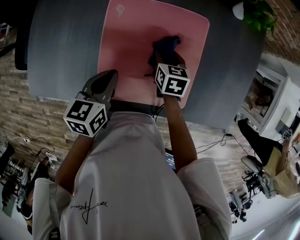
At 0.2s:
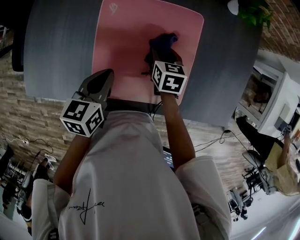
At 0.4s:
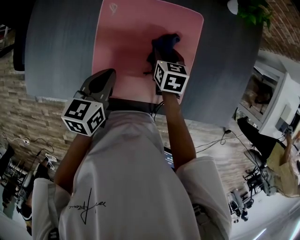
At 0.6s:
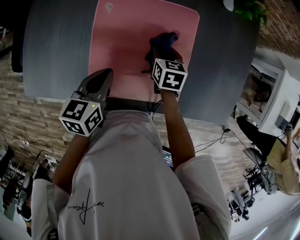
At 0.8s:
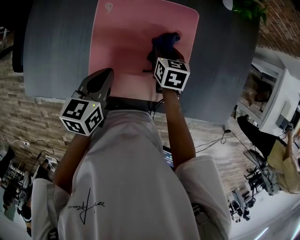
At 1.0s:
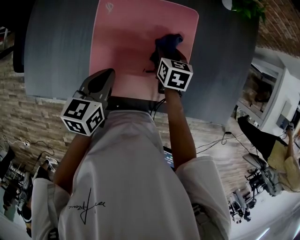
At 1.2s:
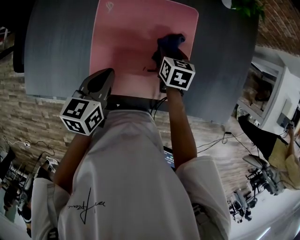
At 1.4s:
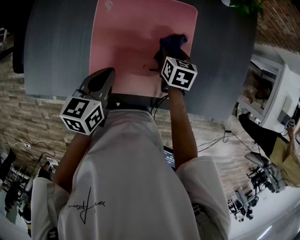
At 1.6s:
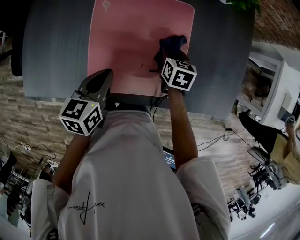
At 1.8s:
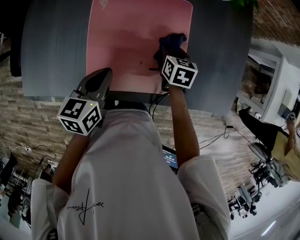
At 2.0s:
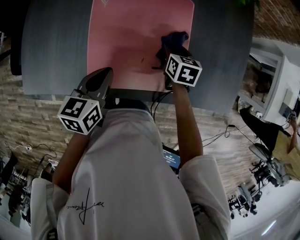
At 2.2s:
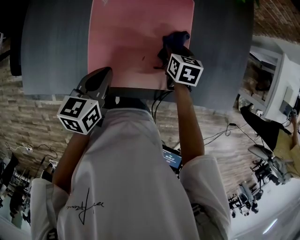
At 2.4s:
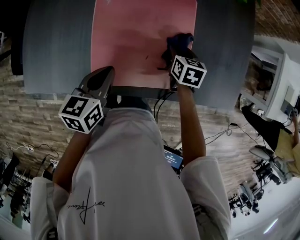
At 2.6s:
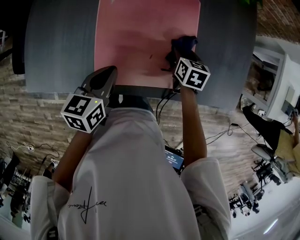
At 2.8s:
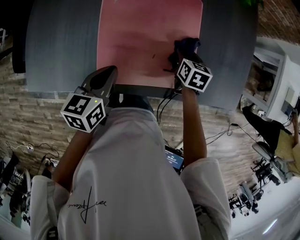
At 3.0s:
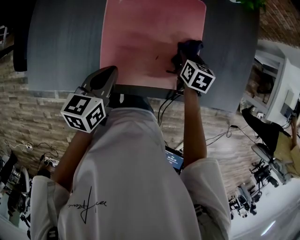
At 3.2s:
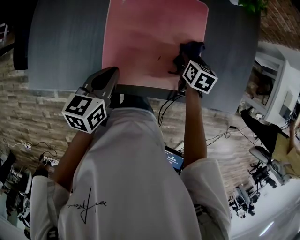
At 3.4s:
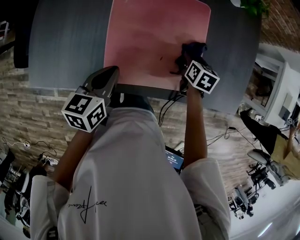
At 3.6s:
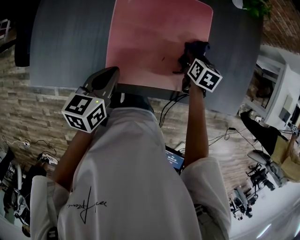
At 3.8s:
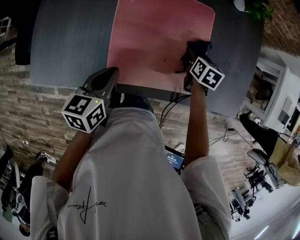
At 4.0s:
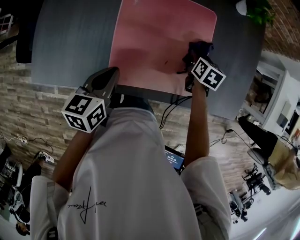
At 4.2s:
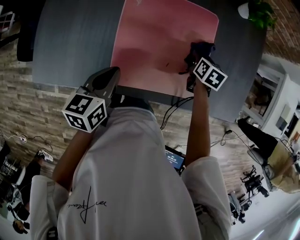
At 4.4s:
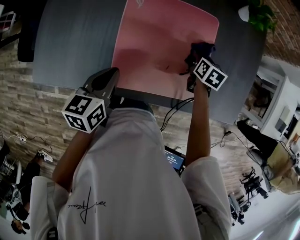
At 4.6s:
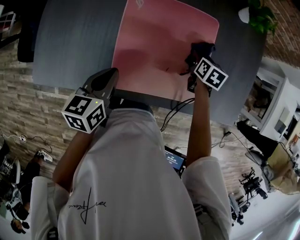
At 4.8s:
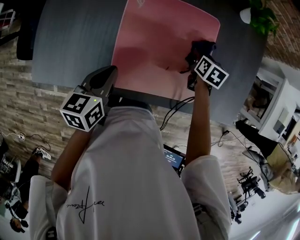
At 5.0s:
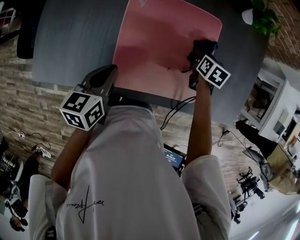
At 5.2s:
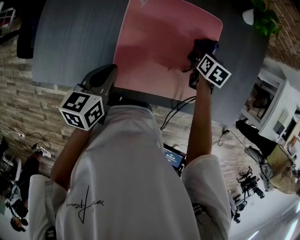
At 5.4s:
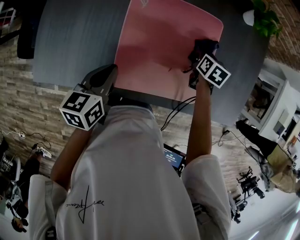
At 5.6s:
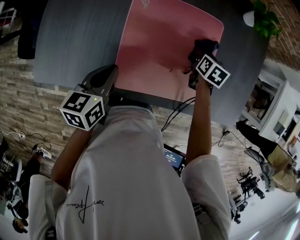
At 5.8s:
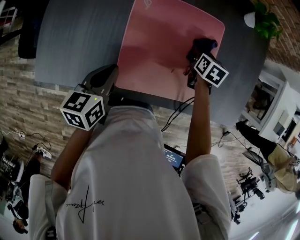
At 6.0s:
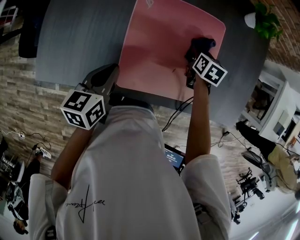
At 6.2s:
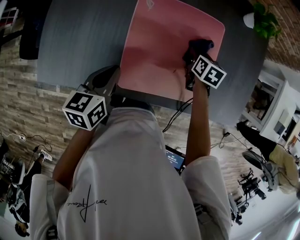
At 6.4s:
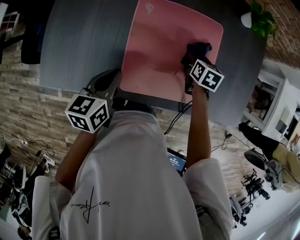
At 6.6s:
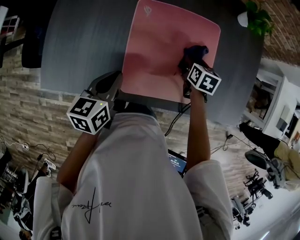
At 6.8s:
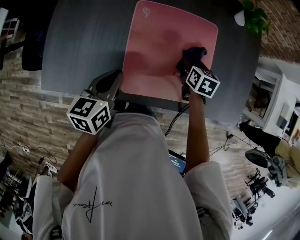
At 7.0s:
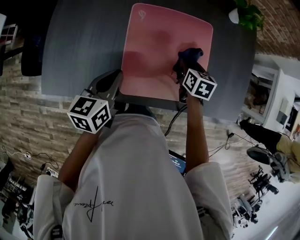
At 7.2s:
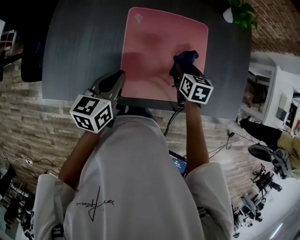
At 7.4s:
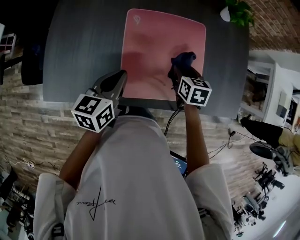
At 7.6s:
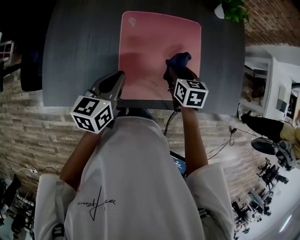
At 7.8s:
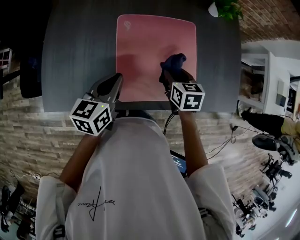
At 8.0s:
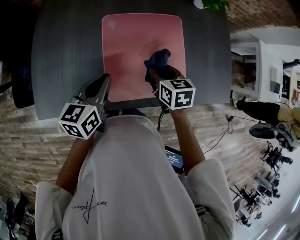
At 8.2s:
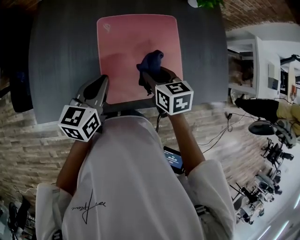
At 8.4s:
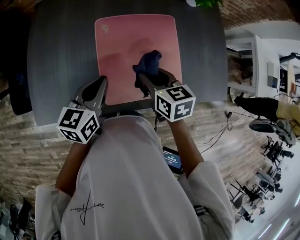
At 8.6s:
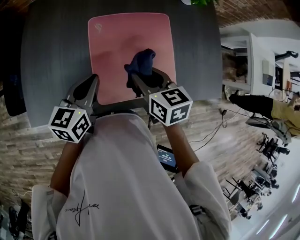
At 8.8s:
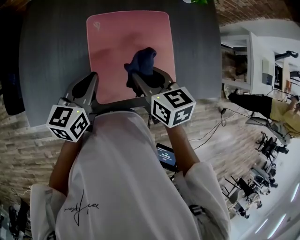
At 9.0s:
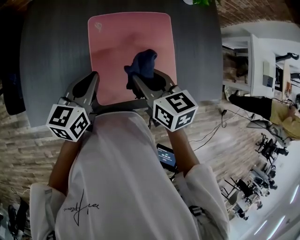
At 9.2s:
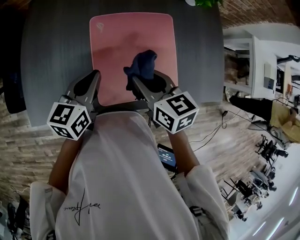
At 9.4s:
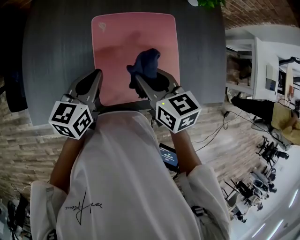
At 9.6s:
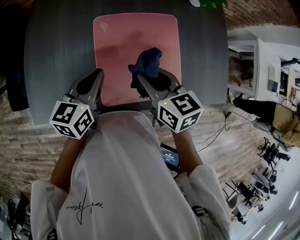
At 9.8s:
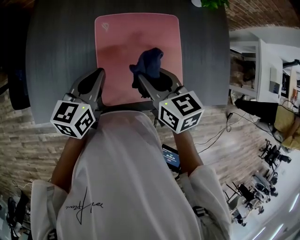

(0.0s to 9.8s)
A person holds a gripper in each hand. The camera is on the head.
0.0s - 1.4s: The right gripper goes roughly 5 cm to the right.
1.4s - 2.8s: The right gripper ends up roughly 5 cm from where it was.
2.8s - 4.2s: The left gripper goes some 5 cm to the left.
4.2s - 5.6s: There are only small adjustments of the grippers.
5.6s - 7.0s: The right gripper shifts some 10 cm backward and to the left.
7.0s - 8.4s: The right gripper goes roughly 15 cm upward, backward and to the left; the left gripper ends up about 5 cm from where it was.
8.4s - 9.8s: There are only small adjustments of the grippers.

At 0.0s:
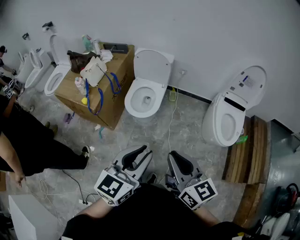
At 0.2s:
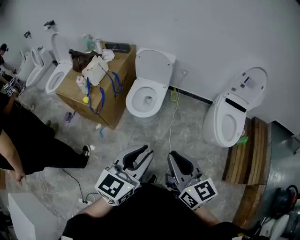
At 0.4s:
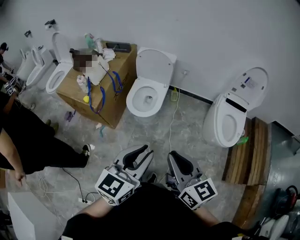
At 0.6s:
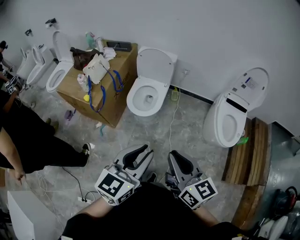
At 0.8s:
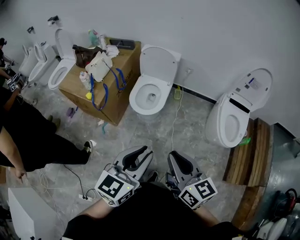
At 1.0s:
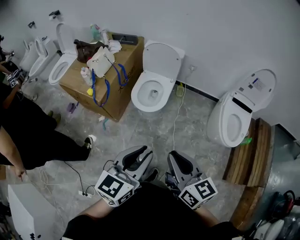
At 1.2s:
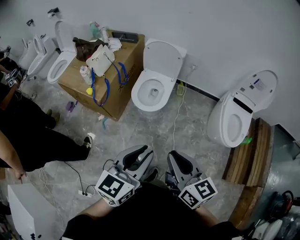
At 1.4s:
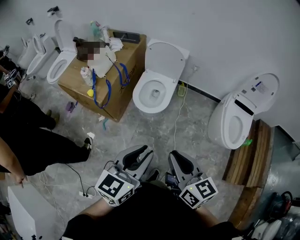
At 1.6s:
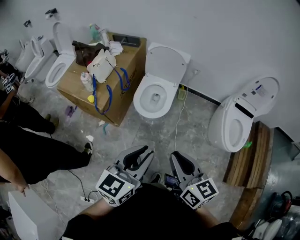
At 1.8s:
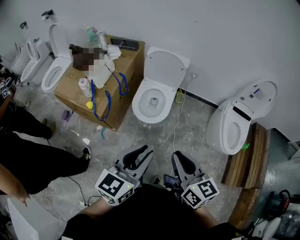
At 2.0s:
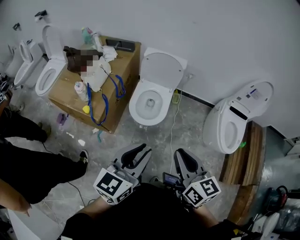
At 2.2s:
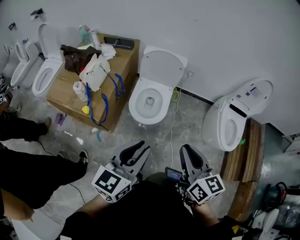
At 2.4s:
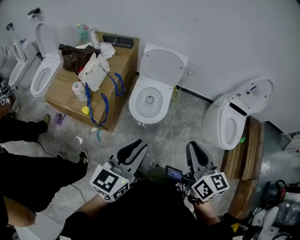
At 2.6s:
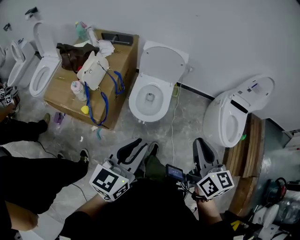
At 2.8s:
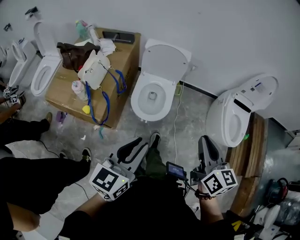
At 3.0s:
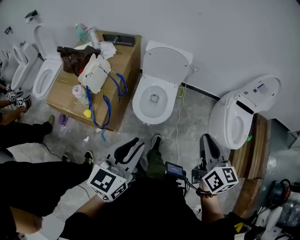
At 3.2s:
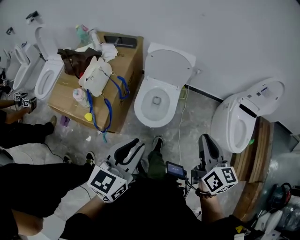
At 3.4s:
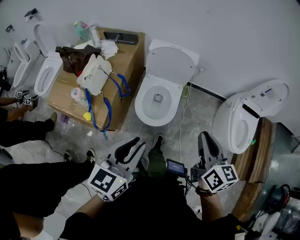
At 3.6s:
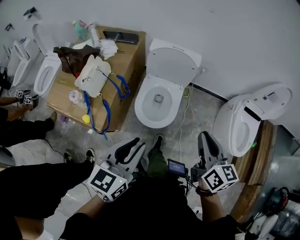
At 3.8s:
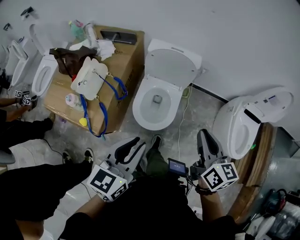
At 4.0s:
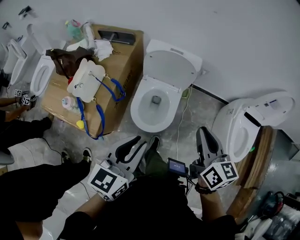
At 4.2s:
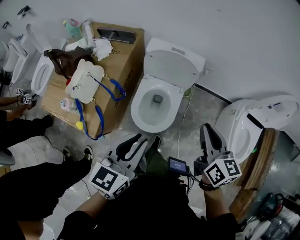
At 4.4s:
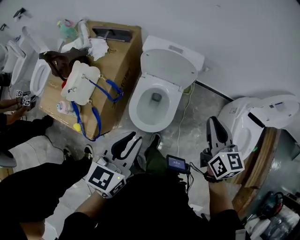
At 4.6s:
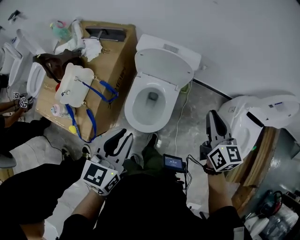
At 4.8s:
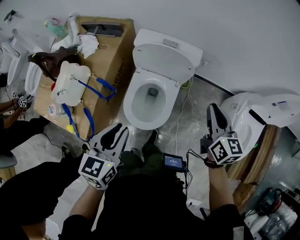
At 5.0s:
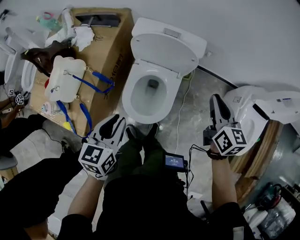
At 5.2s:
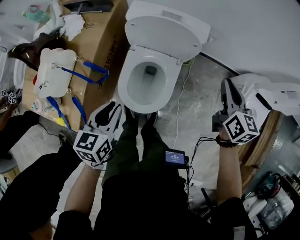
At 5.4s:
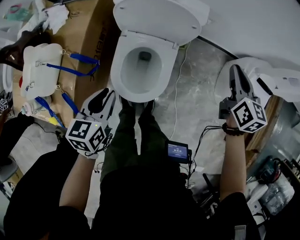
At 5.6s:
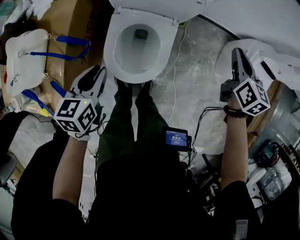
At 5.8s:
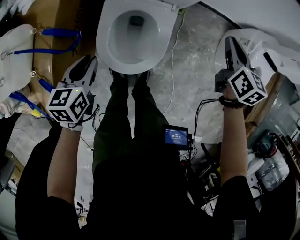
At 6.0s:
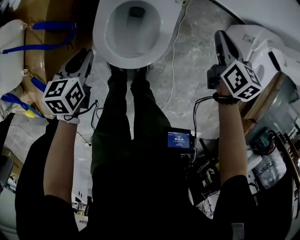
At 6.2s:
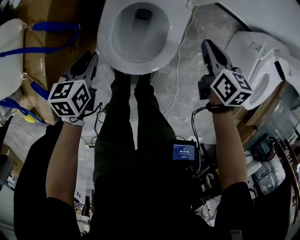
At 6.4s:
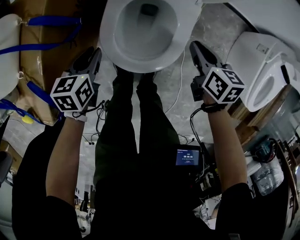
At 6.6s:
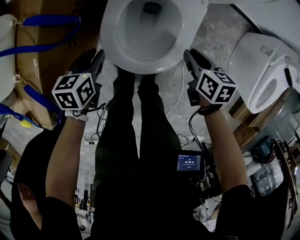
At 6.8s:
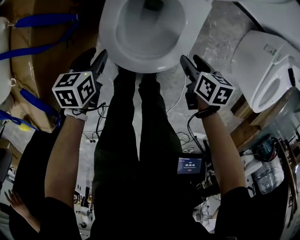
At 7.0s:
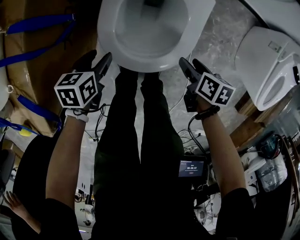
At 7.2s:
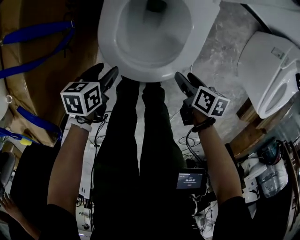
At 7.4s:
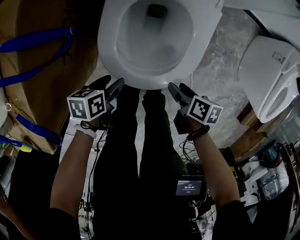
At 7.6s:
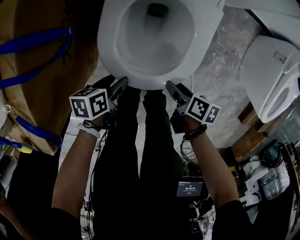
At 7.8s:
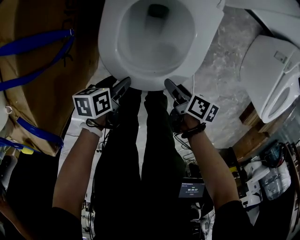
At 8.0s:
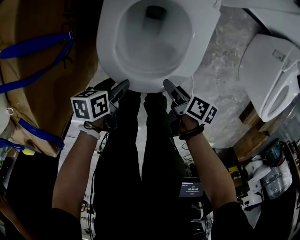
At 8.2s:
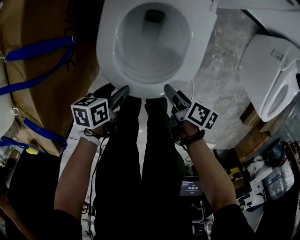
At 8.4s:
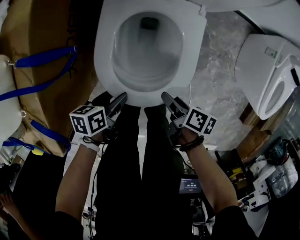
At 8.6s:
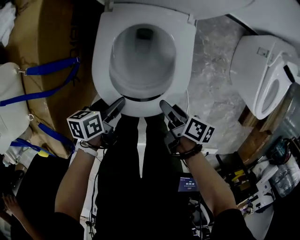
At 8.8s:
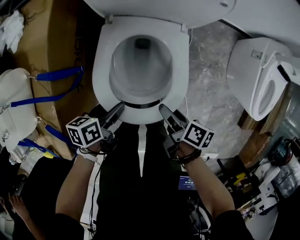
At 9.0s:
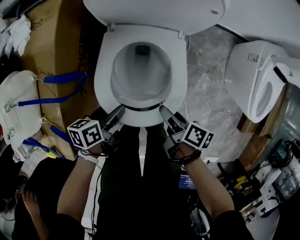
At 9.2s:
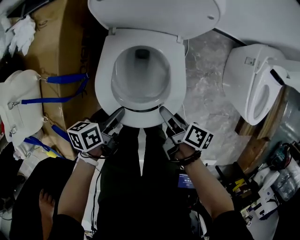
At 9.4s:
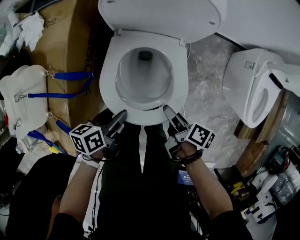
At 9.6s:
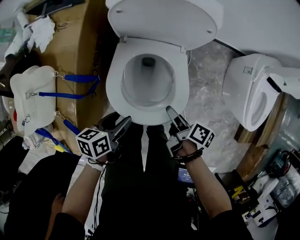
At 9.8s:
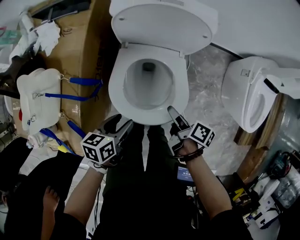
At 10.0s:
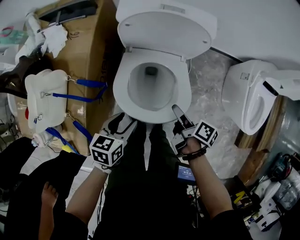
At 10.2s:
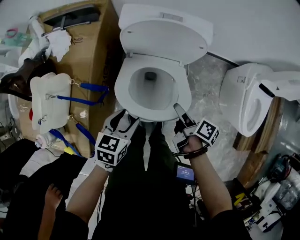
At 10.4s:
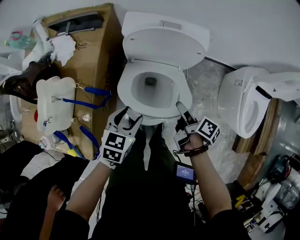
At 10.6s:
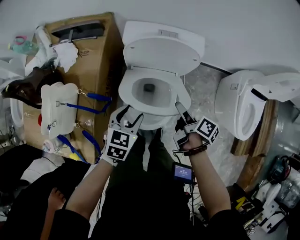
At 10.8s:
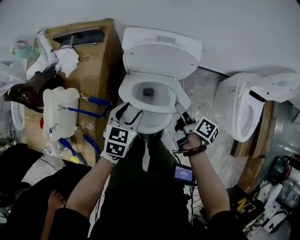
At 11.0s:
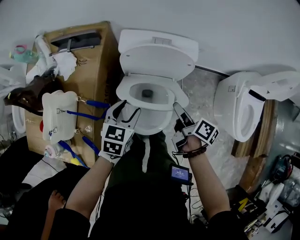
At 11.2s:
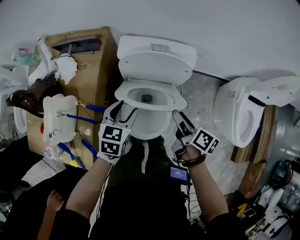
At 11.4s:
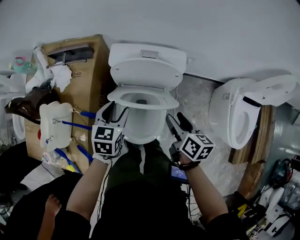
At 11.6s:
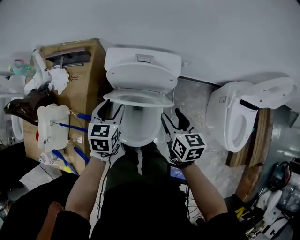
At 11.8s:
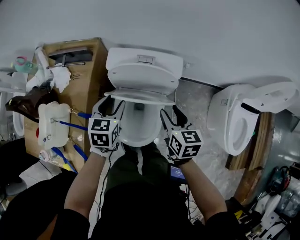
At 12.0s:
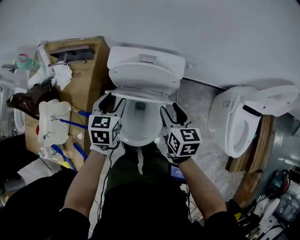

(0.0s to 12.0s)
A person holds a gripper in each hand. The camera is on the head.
0.0s - 1.6s: Both grippers move to the left and forward, approximately 15 cm.
1.6s - 3.0s: The right gripper travels forward by about 20 cm, and changes its angle by roughly 20 degrees. The left gripper is displaced to the left and forward by some 20 cm.
3.0s - 4.4s: Both grippers move forward, about 25 cm.
4.4s - 6.0s: Both grippers travel together downward, about 40 cm. The left gripper turns by roughly 30 degrees. Meanwhile the right gripper rotates some 20 degrees.
6.0s - 7.6s: The grippers both shift downward by roughly 25 cm. The left gripper changes its angle by some 30 degrees, and opens; the right gripper changes its angle by roughly 50 degrees, and opens.
7.6s - 9.0s: The two grippers go approximately 20 cm upward.
9.0s - 10.4s: The right gripper heads upward and forward, covering some 15 cm. The left gripper is displaced upward by about 15 cm, and rotates around the line of its fingers by about 40 degrees, clockwise from behind.
10.4s - 12.0s: The left gripper is displaced forward and upward by about 20 cm. Meanwhile the right gripper is displaced upward and forward by some 15 cm, and twists approximately 60 degrees counterclockwise, seen from behind.

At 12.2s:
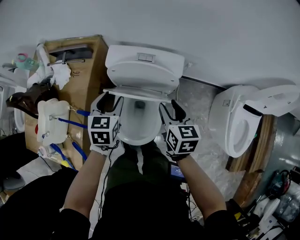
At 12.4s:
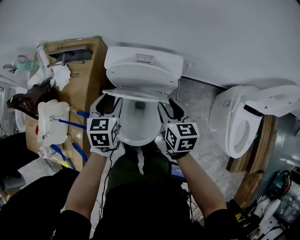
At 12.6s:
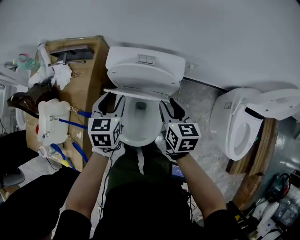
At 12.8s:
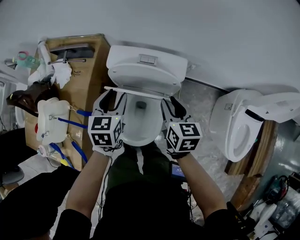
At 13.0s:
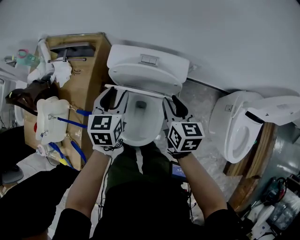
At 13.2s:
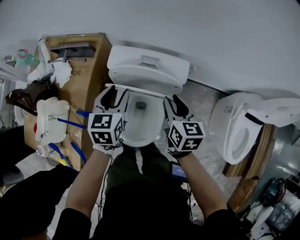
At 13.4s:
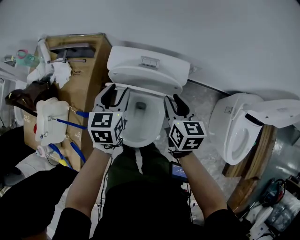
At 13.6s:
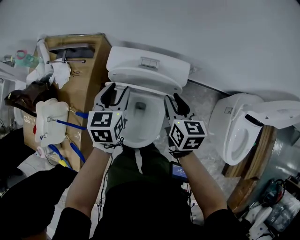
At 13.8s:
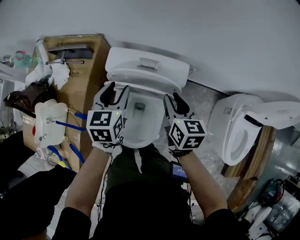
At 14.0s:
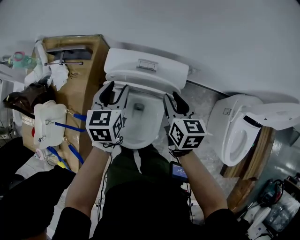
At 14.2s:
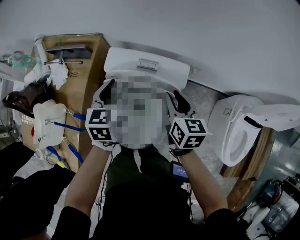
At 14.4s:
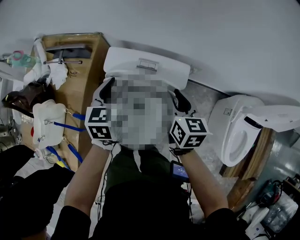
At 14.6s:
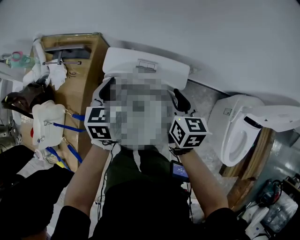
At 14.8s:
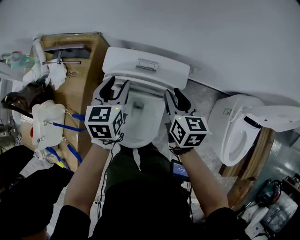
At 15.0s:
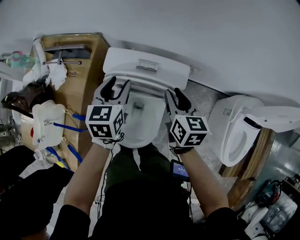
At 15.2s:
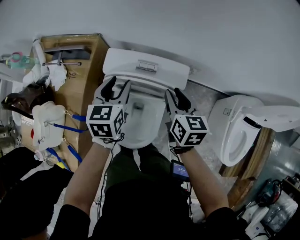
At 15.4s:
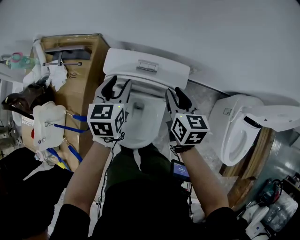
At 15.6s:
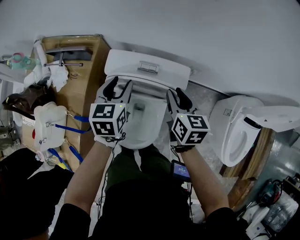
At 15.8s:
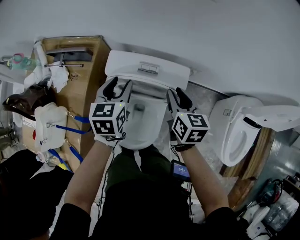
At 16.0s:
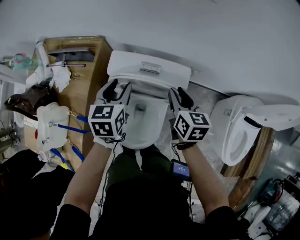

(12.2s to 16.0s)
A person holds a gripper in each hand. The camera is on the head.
12.2s - 13.4s: Both grippers travel together forward, about 5 cm.
13.4s - 14.8s: The right gripper shifts by some 5 cm. The left gripper moves some 5 cm.
14.8s - 16.0s: Both grippers stay put.
